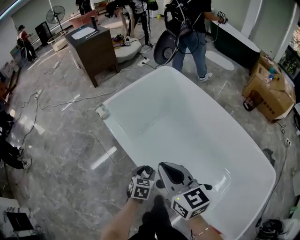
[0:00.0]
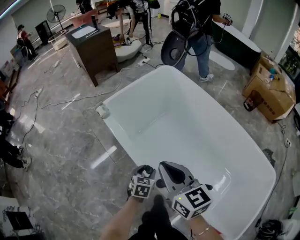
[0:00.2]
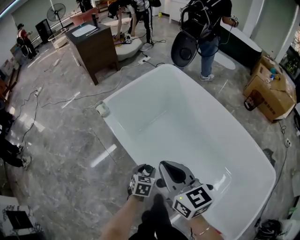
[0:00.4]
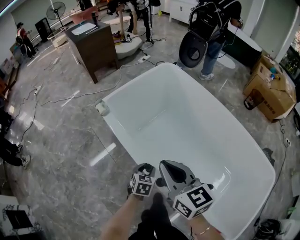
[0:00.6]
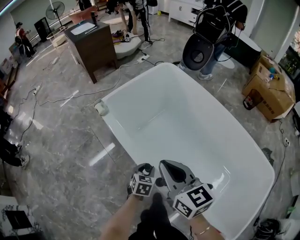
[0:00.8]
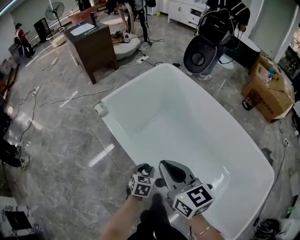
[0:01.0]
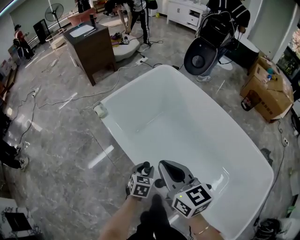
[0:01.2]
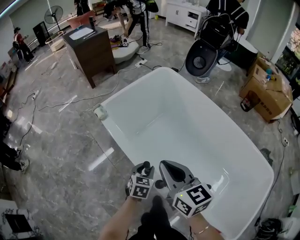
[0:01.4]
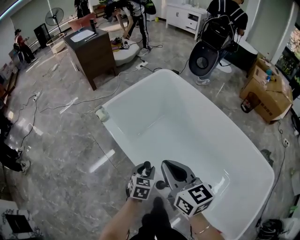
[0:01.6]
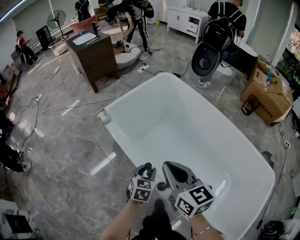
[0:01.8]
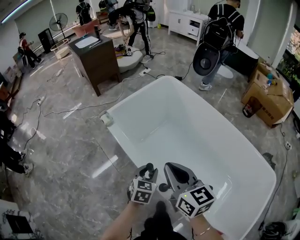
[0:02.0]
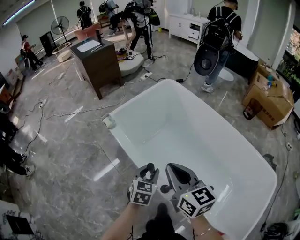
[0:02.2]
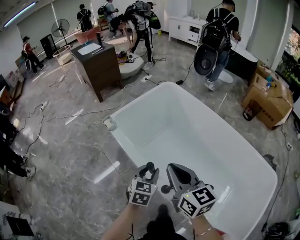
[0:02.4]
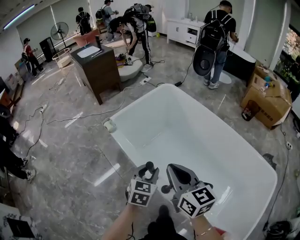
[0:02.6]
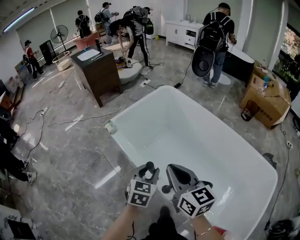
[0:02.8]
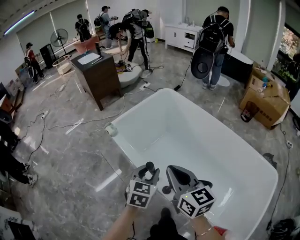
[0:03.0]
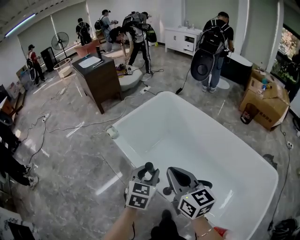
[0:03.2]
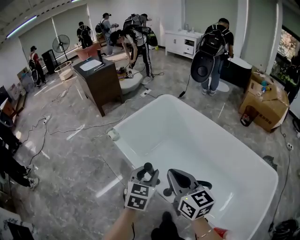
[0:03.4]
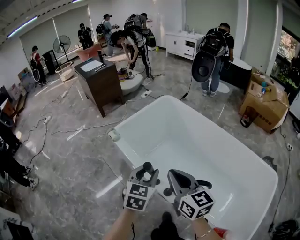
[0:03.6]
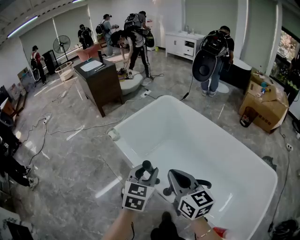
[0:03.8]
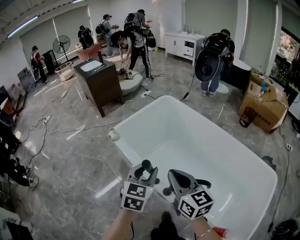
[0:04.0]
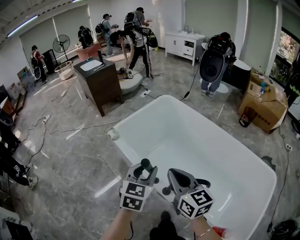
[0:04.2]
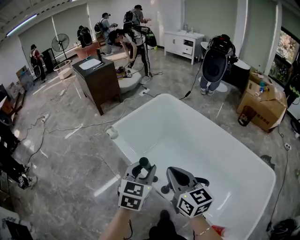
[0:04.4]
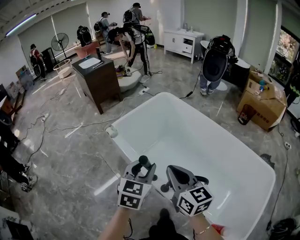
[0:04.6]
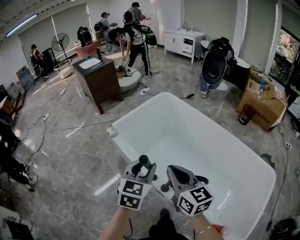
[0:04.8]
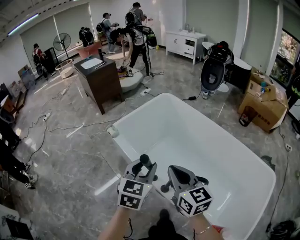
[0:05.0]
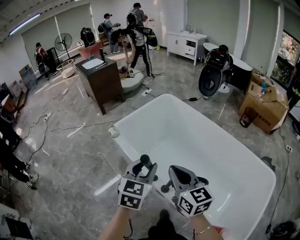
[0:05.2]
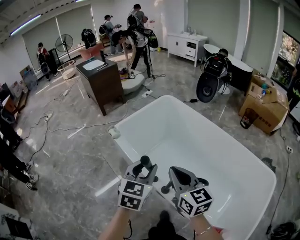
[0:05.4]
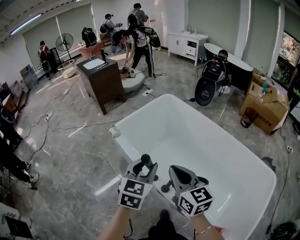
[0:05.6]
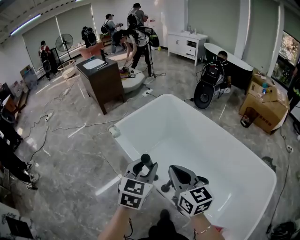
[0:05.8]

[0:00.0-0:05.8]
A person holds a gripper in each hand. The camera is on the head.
0:00.0 to 0:01.4: The grippers move only a little.
0:01.4 to 0:02.8: The right gripper moves backward and upward, roughly 10 cm; the left gripper travels upward and backward by approximately 20 cm.
0:02.8 to 0:04.4: The right gripper travels backward by about 10 cm, while the left gripper is displaced upward and backward by some 15 cm.
0:04.4 to 0:05.8: The grippers move only a little.

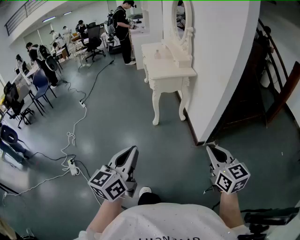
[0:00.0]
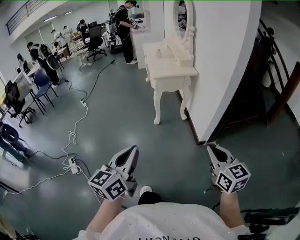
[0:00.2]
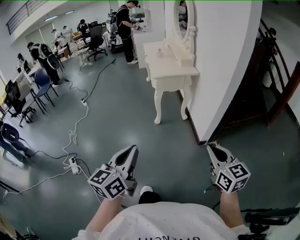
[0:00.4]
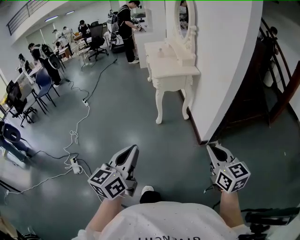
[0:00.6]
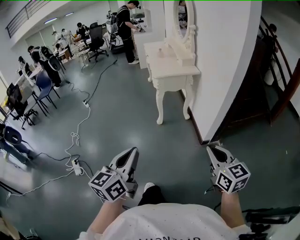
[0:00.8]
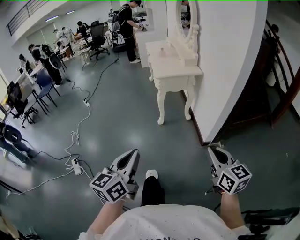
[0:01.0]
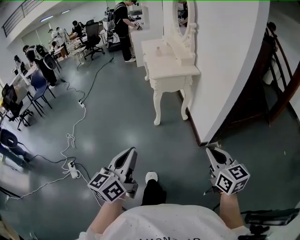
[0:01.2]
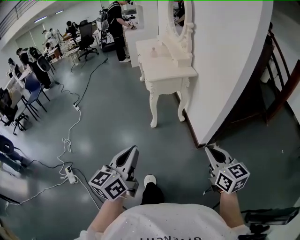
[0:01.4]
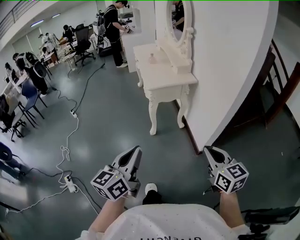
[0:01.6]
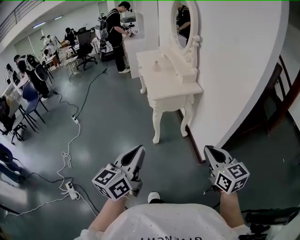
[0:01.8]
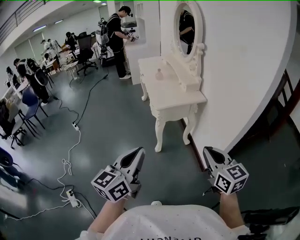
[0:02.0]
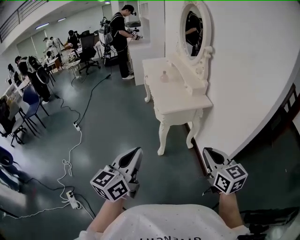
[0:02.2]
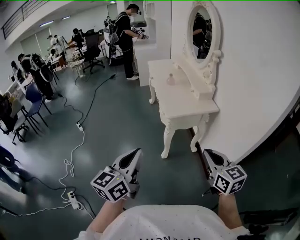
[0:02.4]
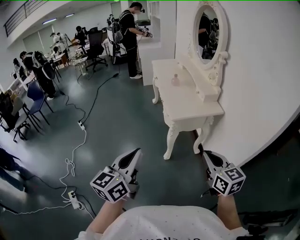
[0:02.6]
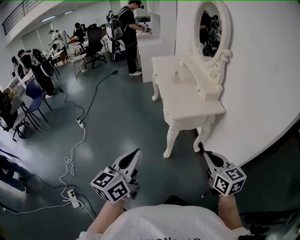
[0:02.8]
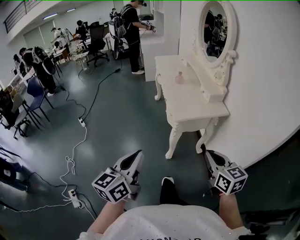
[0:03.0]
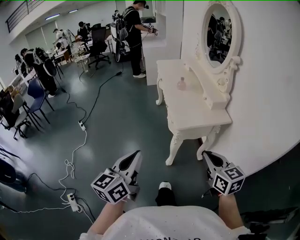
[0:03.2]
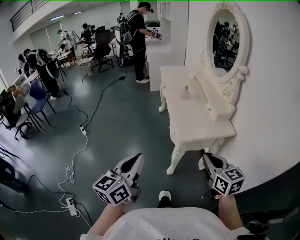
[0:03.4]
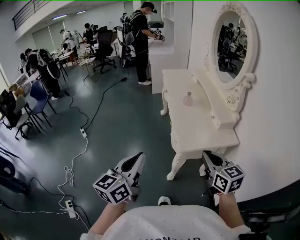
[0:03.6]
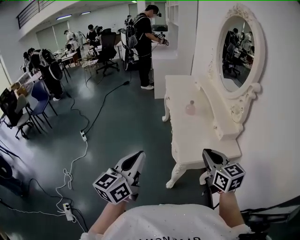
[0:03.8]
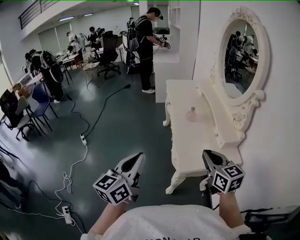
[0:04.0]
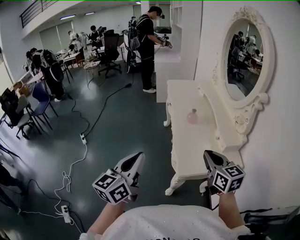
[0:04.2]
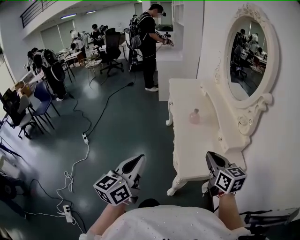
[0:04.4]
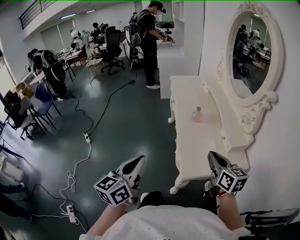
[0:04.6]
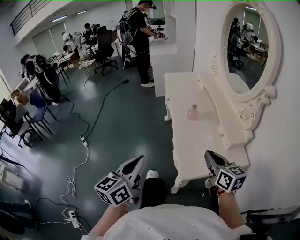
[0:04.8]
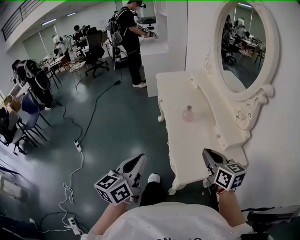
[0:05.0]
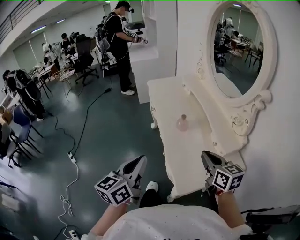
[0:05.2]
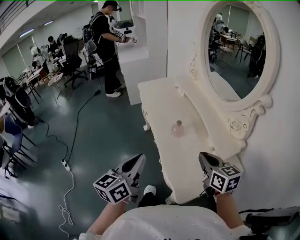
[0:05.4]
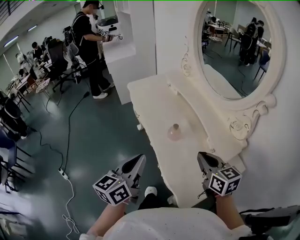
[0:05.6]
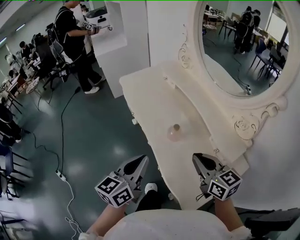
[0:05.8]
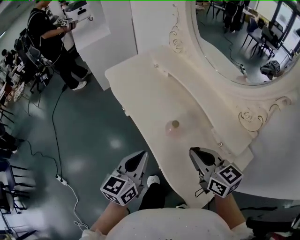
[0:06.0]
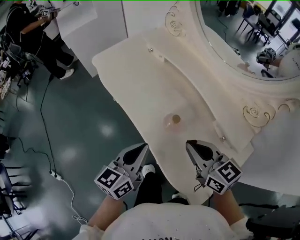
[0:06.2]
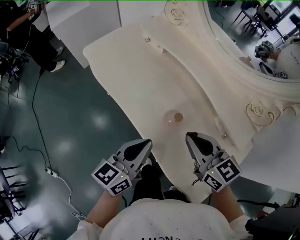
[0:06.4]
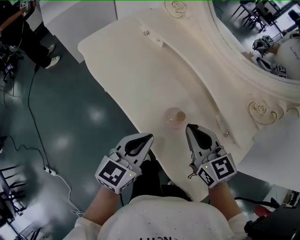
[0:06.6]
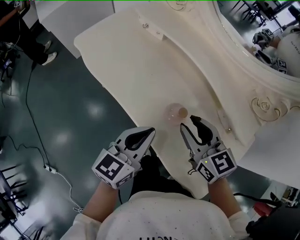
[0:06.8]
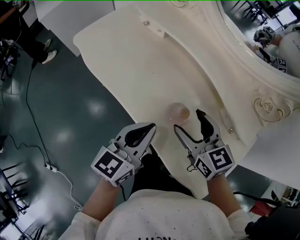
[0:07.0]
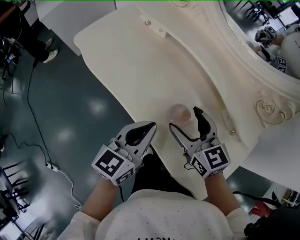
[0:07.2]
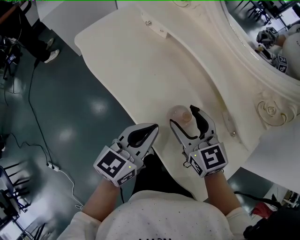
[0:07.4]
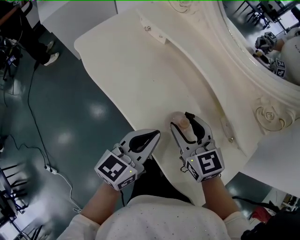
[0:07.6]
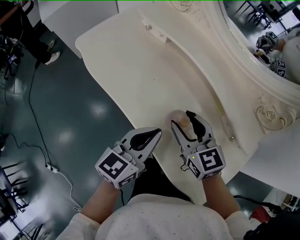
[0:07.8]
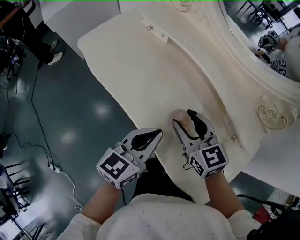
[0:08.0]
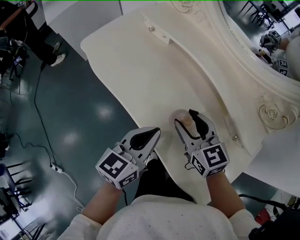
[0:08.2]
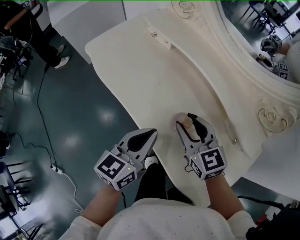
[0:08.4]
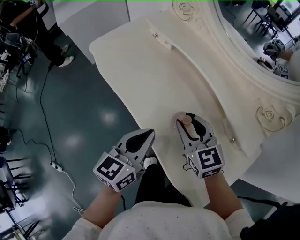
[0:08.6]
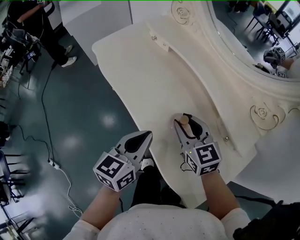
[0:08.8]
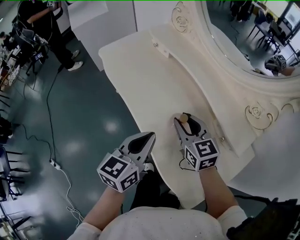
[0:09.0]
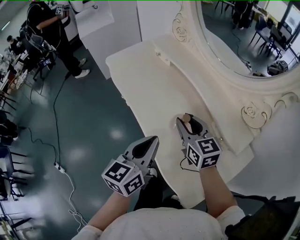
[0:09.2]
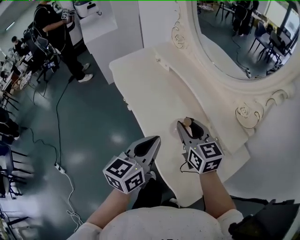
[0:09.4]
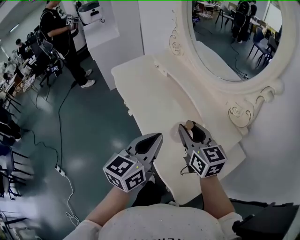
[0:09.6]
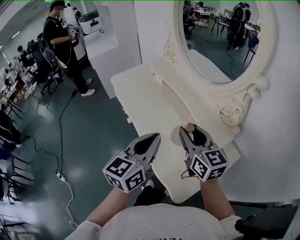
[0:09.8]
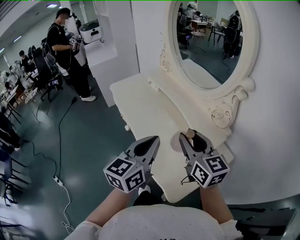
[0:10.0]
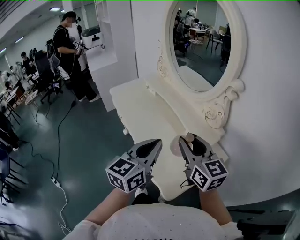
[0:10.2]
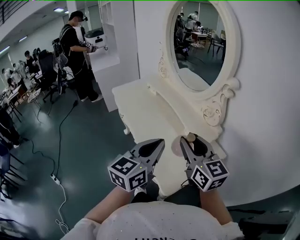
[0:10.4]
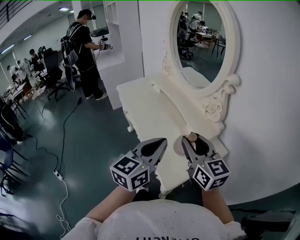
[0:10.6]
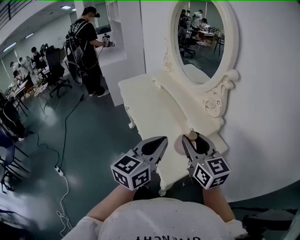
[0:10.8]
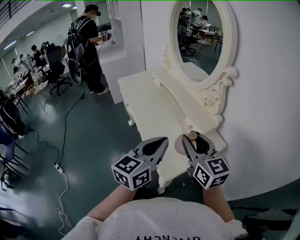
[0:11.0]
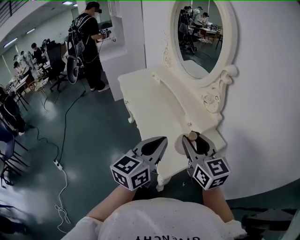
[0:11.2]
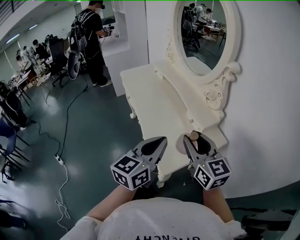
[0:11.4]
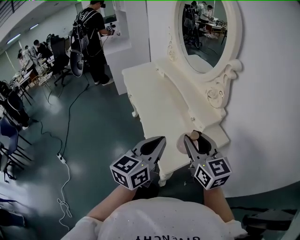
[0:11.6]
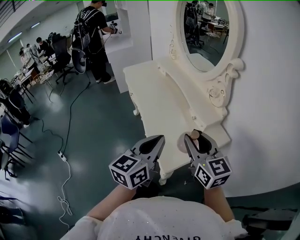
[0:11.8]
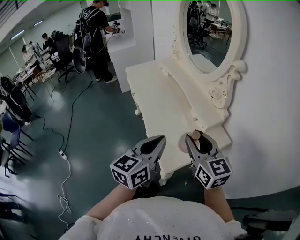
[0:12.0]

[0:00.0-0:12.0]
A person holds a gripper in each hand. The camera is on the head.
0:00.0 to 0:01.6: The two grippers go about 20 cm forward.
0:01.6 to 0:03.0: Both grippers travel together forward and to the left, some 30 cm.
0:03.0 to 0:04.4: Both grippers move forward, about 35 cm.
0:04.4 to 0:06.0: The left gripper is displaced forward by about 40 cm, and changes its angle by approximately 30 degrees. The right gripper is displaced forward by some 25 cm.
0:06.0 to 0:07.6: The right gripper heads forward, downward and to the left, covering roughly 15 cm, and opens, while the left gripper moves forward and downward, about 10 cm, and turns by approximately 20 degrees.
0:07.6 to 0:09.0: The left gripper heads backward, covering roughly 5 cm.
0:09.0 to 0:10.4: The grippers both shift upward, backward and to the right by some 30 cm. The right gripper rotates roughly 20 degrees.
0:10.4 to 0:12.0: The grippers both shift backward by about 10 cm.
